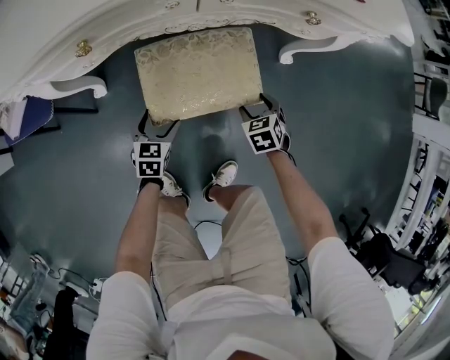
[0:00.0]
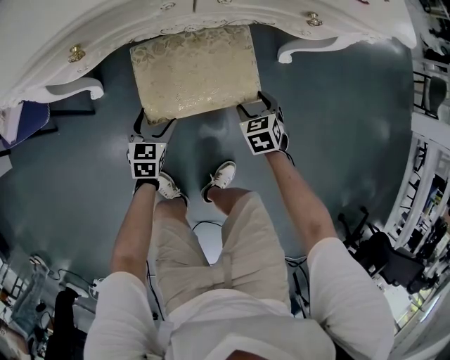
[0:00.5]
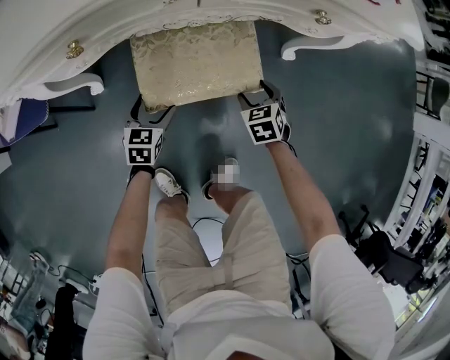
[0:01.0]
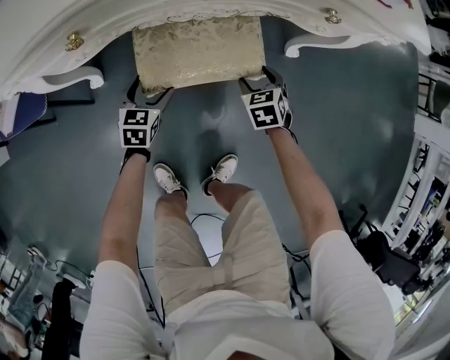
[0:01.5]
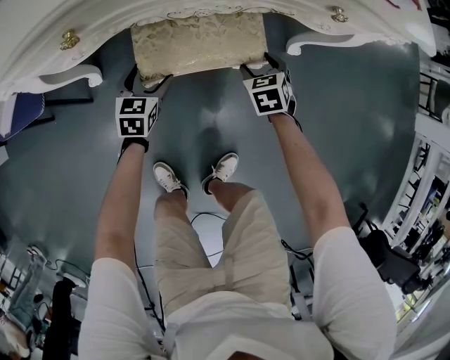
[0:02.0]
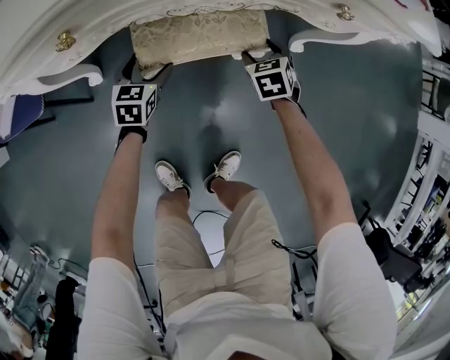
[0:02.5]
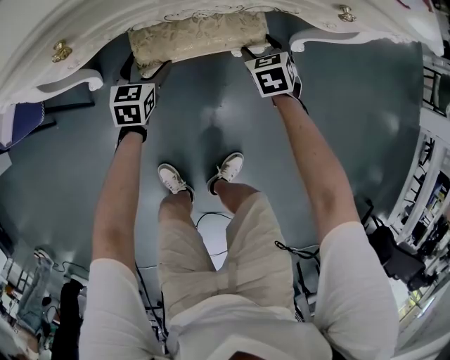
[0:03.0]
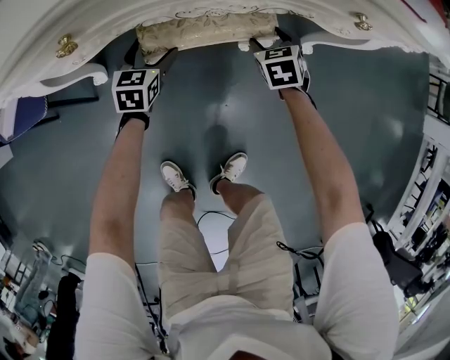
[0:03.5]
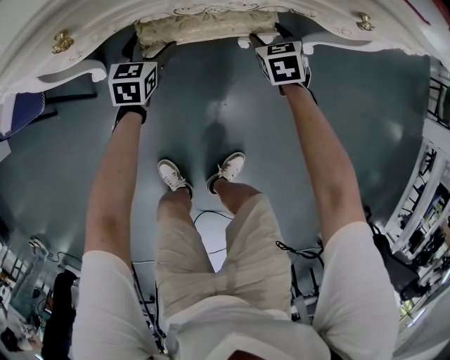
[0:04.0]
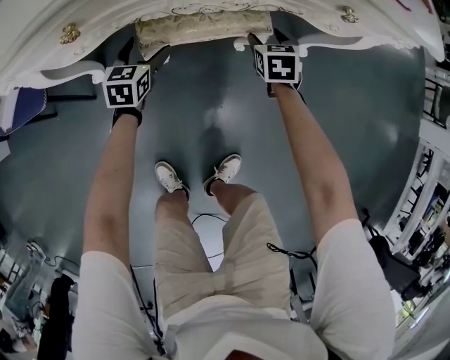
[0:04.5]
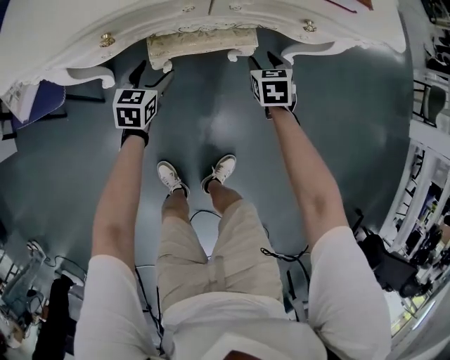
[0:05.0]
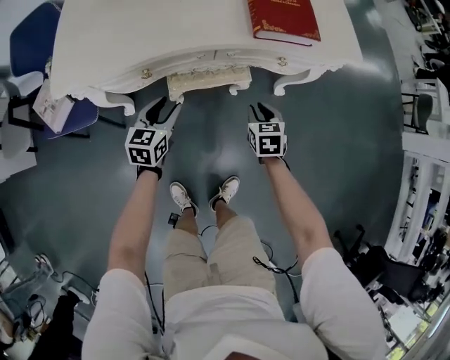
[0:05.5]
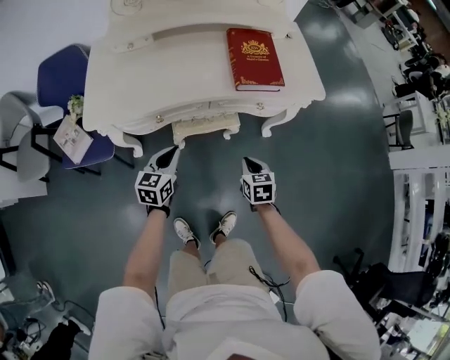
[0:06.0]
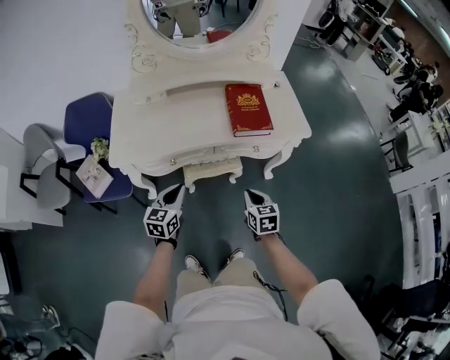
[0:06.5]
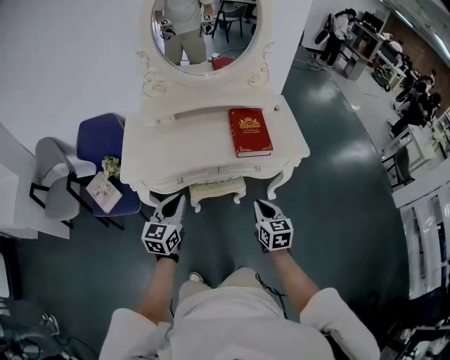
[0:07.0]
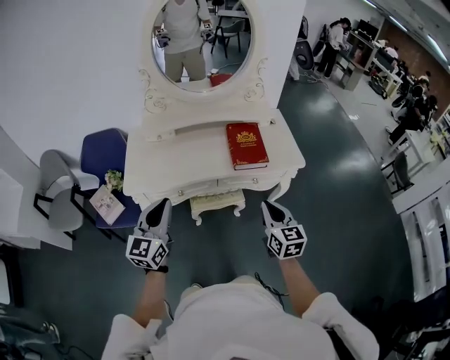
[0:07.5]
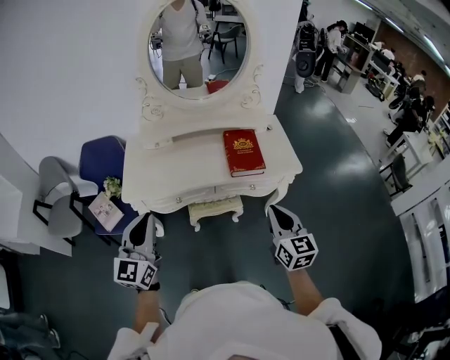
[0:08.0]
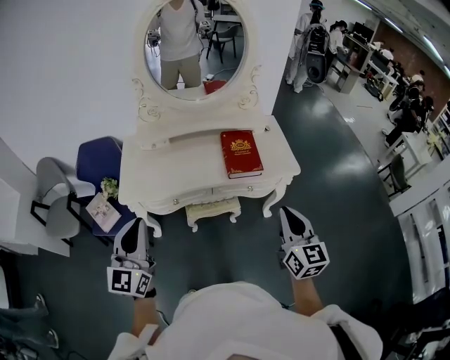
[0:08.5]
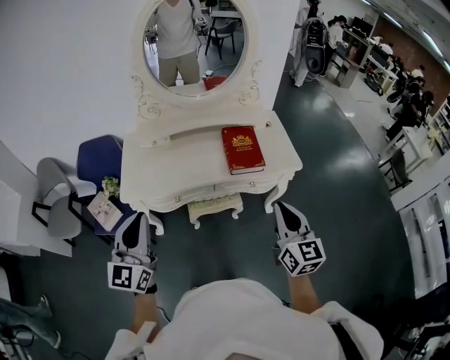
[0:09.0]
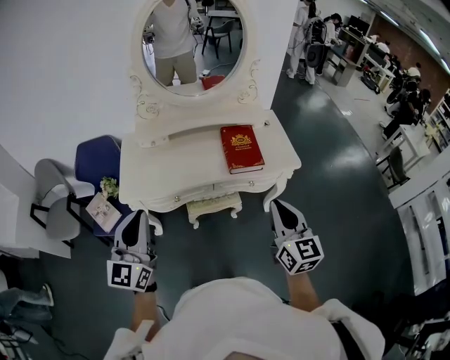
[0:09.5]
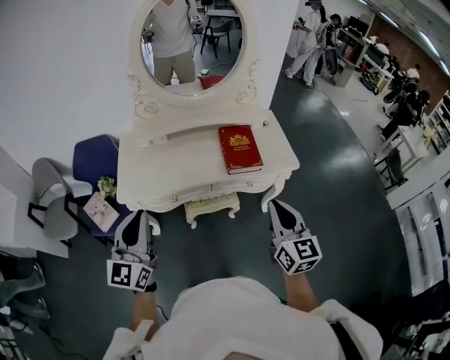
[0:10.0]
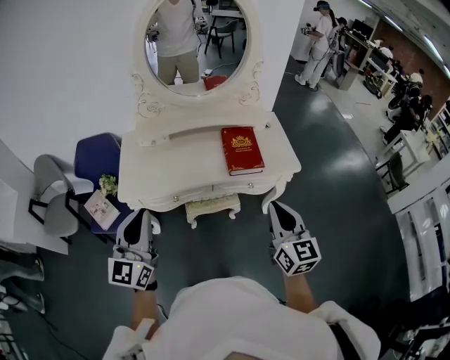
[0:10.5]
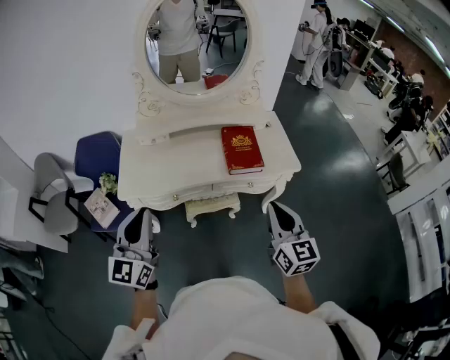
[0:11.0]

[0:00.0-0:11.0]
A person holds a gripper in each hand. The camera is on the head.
0:00.0 to 0:02.0: Both grippers travel together forward, roughly 10 cm.
0:02.0 to 0:03.5: The grippers both shift forward by roughly 5 cm.
0:03.5 to 0:05.5: The right gripper goes some 25 cm upward and backward, and closes up; the left gripper shifts some 25 cm upward, and closes up.
0:05.5 to 0:07.5: The grippers both shift upward by approximately 40 cm. The left gripper swivels approximately 30 degrees, and closes, while the right gripper angles its fingers upward, by roughly 30 degrees.
0:07.5 to 0:09.0: The two grippers go some 10 cm upward.
0:09.0 to 0:11.0: The grippers move only a little.

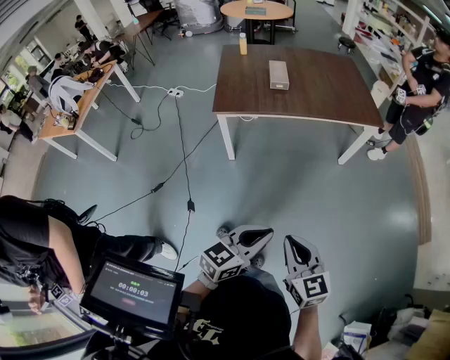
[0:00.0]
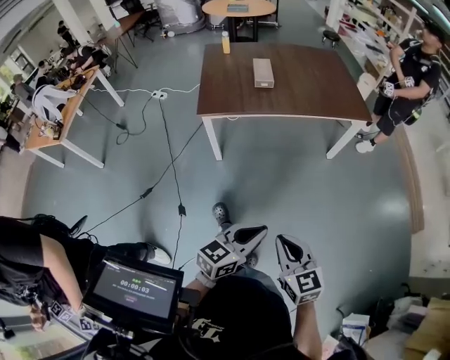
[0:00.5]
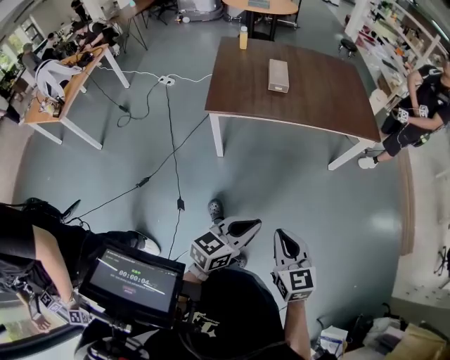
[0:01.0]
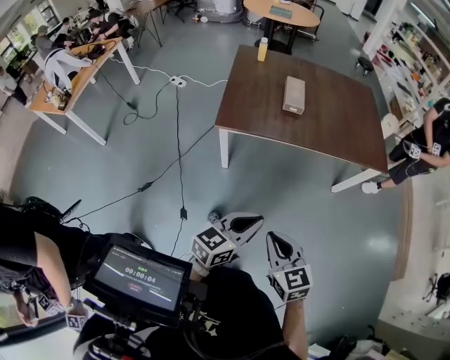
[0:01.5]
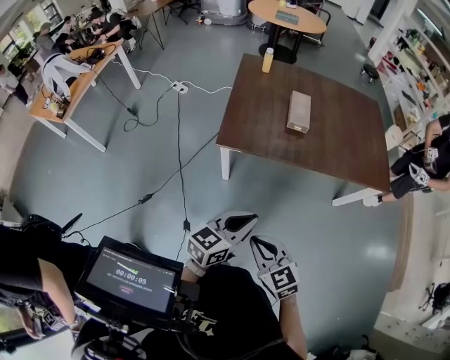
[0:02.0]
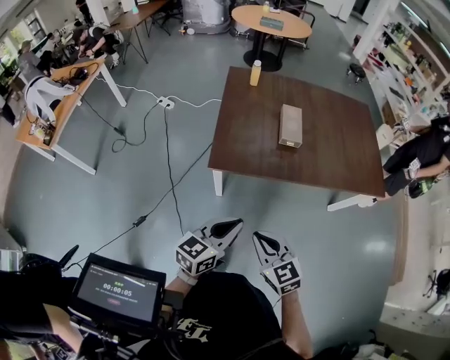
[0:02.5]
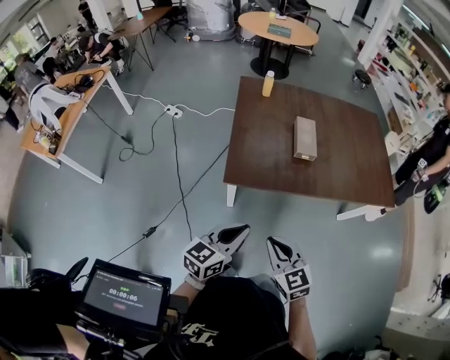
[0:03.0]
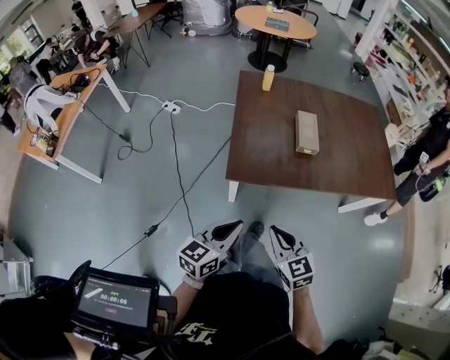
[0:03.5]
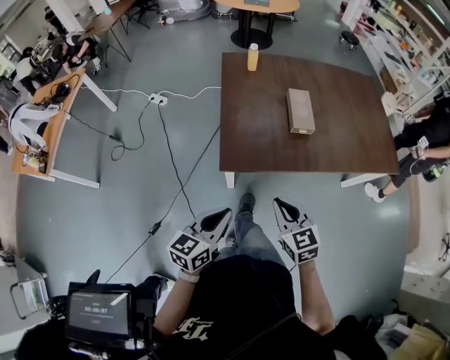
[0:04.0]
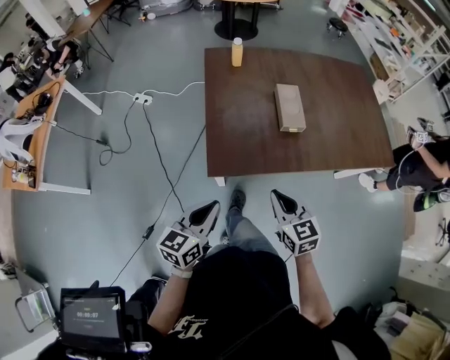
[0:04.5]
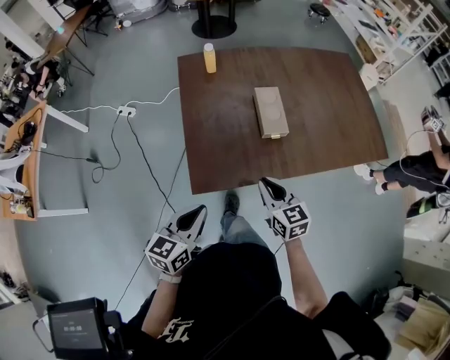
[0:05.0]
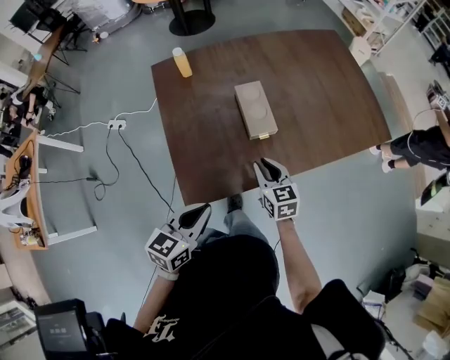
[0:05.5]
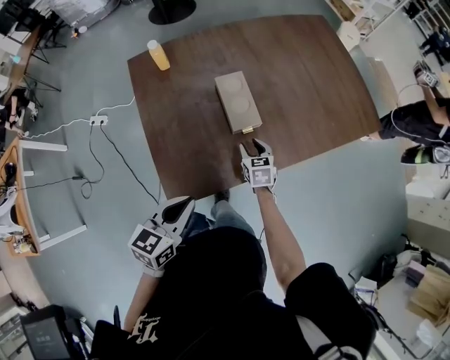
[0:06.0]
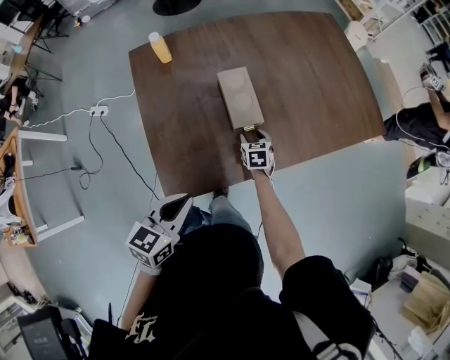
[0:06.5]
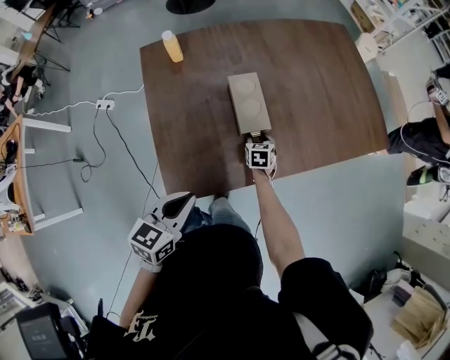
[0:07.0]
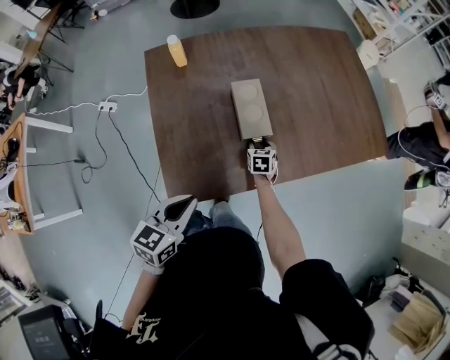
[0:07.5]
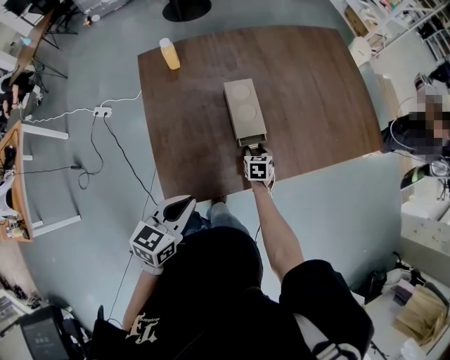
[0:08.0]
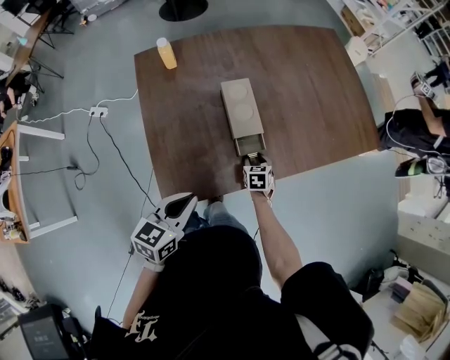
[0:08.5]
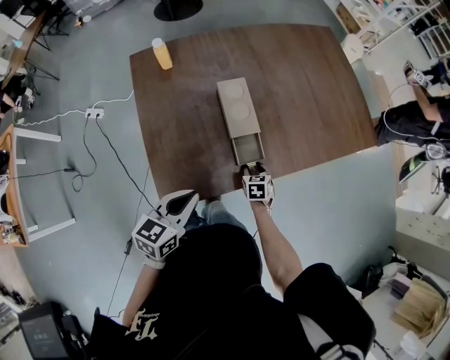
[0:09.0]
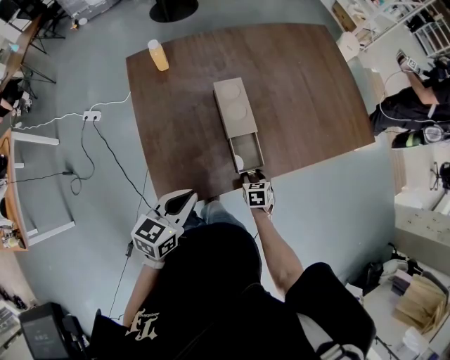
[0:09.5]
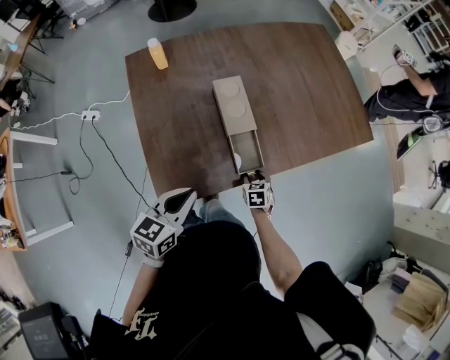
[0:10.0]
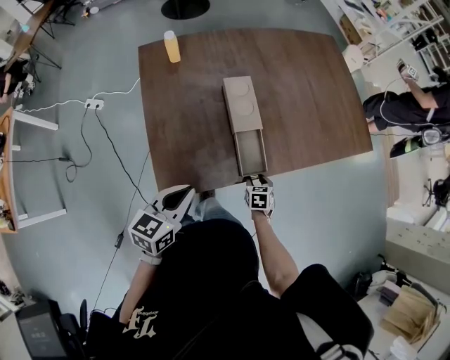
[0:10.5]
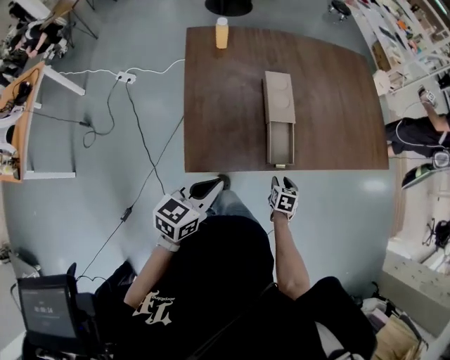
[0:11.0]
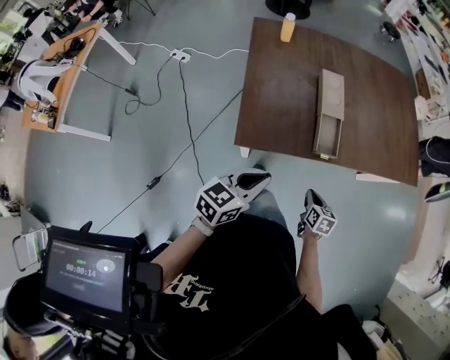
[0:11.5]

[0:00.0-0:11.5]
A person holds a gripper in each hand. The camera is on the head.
0:00.0 to 0:02.0: Both grippers move forward and to the left, approximately 35 cm. The right gripper changes its angle by some 30 degrees.
0:02.0 to 0:04.0: The right gripper travels forward by roughly 25 cm. The left gripper travels to the left and forward by approximately 25 cm.
0:04.0 to 0:06.0: The right gripper shifts some 40 cm forward and downward, rotates some 40 degrees, and opens up, while the left gripper travels forward by approximately 25 cm, and rotates roughly 20 degrees.
0:06.0 to 0:07.5: The right gripper is displaced downward and forward by roughly 10 cm.
0:07.5 to 0:09.5: The right gripper goes some 15 cm backward and to the right.
0:09.5 to 0:11.5: Both grippers travel together backward, approximately 20 cm. The right gripper closes.

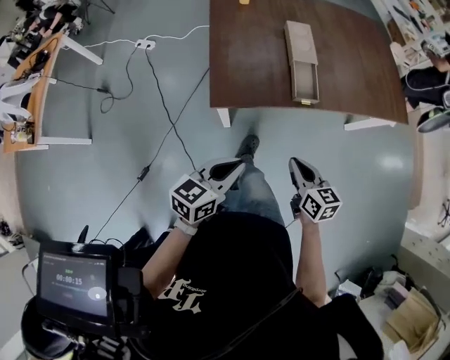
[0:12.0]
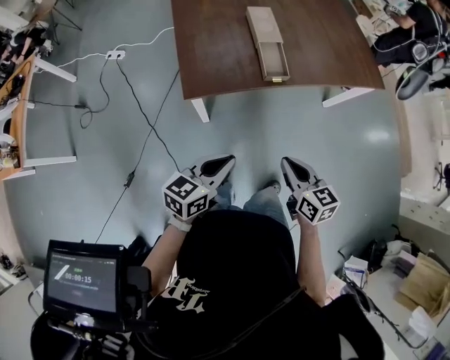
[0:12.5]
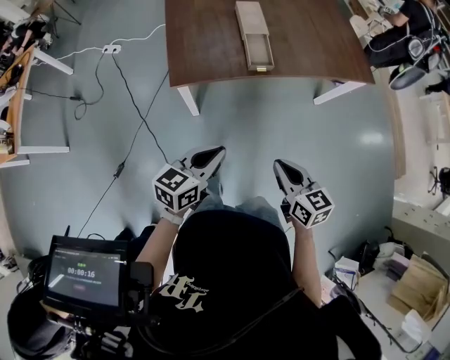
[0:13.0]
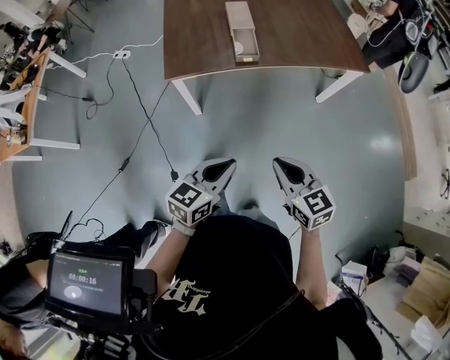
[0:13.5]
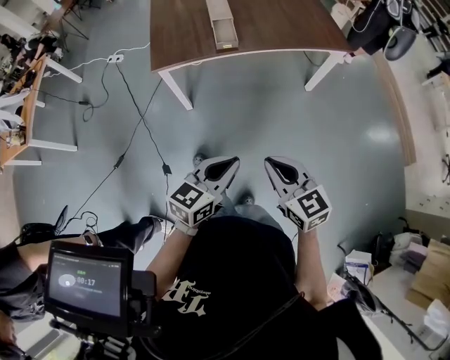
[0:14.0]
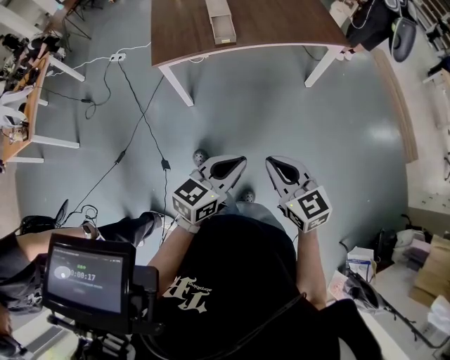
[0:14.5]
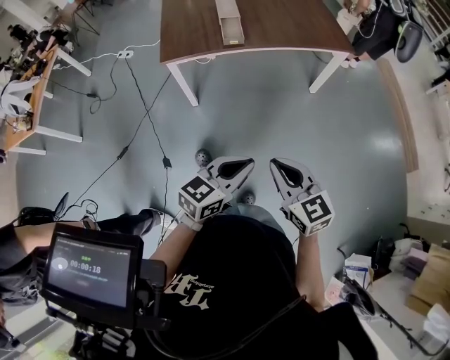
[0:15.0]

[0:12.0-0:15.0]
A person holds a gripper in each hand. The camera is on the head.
0:12.0 to 0:13.5: The right gripper is displaced backward and to the right by roughly 30 cm. Meanwhile the left gripper travels to the right and backward by approximately 30 cm.
0:13.5 to 0:15.0: The grippers both shift backward and to the right by approximately 20 cm.

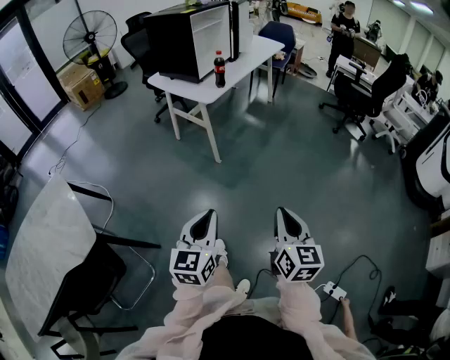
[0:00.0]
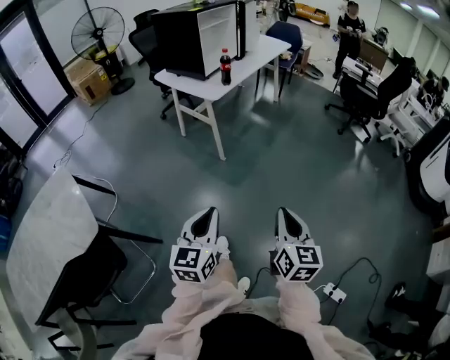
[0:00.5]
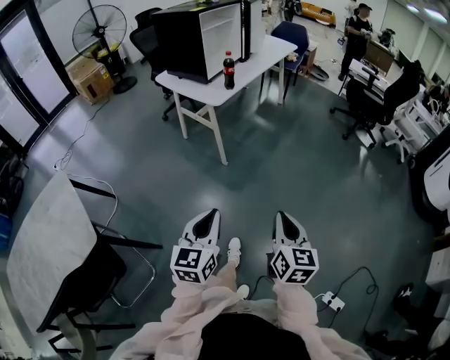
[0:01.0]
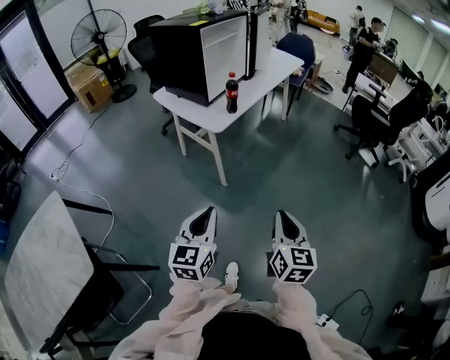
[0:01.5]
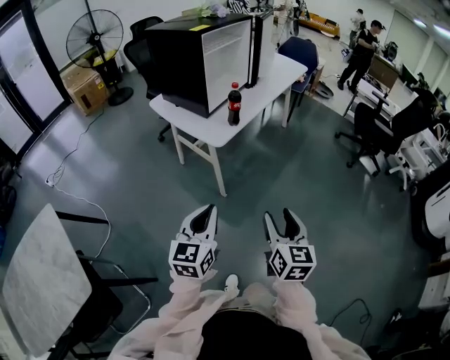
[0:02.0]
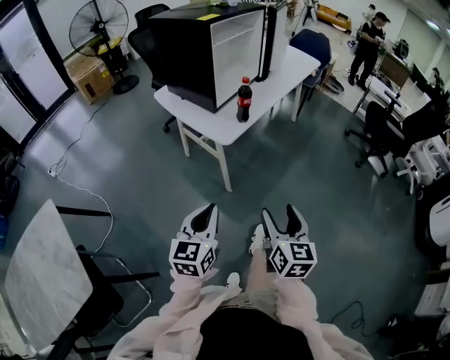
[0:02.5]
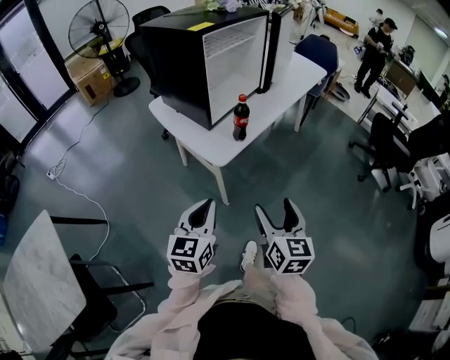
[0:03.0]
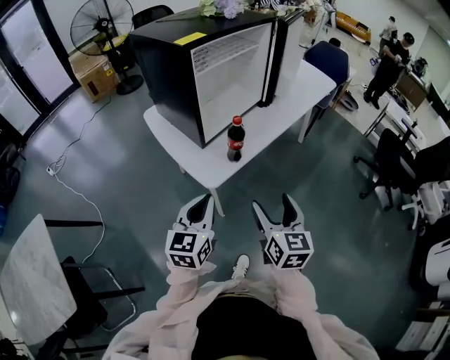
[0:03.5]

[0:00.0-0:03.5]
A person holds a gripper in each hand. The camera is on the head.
0:00.0 to 0:02.0: The two grippers go roughly 30 cm forward. The right gripper opens its fingers.
0:02.0 to 0:03.5: The grippers both shift forward by some 30 cm. The right gripper opens.
